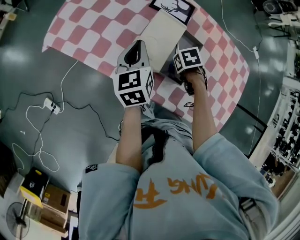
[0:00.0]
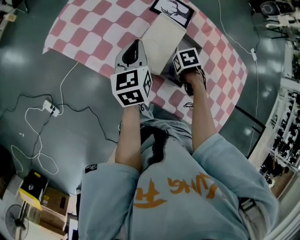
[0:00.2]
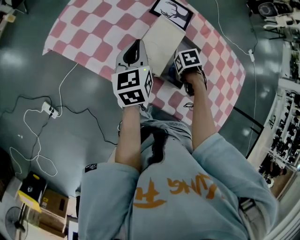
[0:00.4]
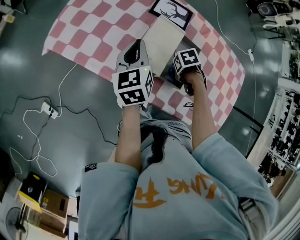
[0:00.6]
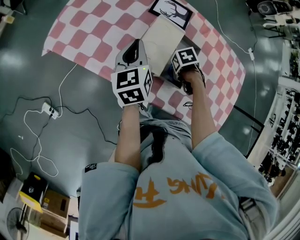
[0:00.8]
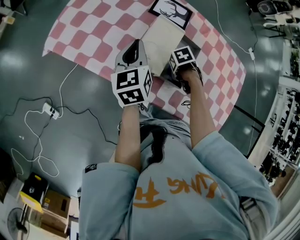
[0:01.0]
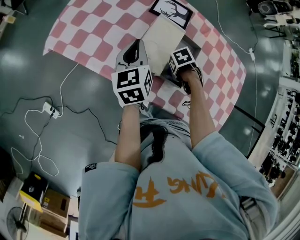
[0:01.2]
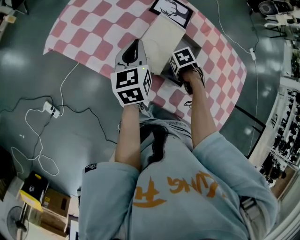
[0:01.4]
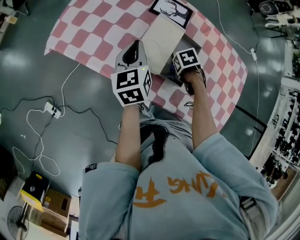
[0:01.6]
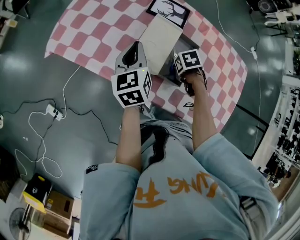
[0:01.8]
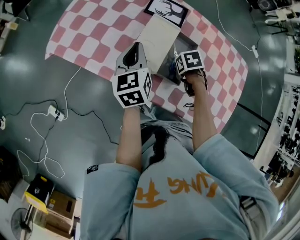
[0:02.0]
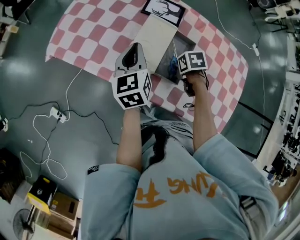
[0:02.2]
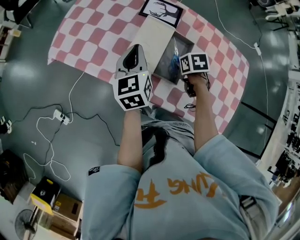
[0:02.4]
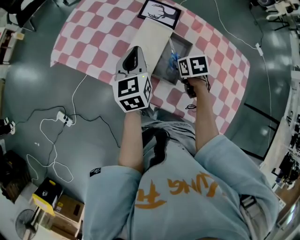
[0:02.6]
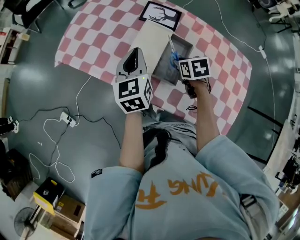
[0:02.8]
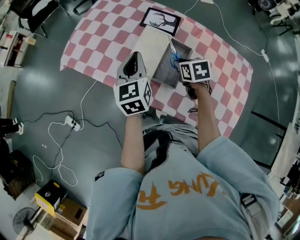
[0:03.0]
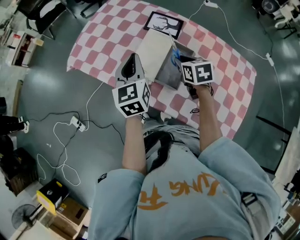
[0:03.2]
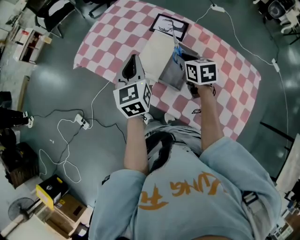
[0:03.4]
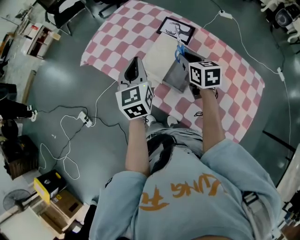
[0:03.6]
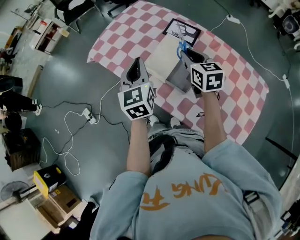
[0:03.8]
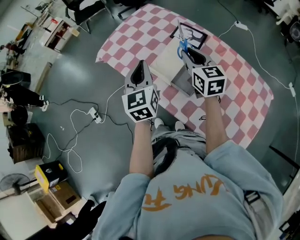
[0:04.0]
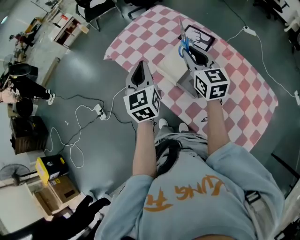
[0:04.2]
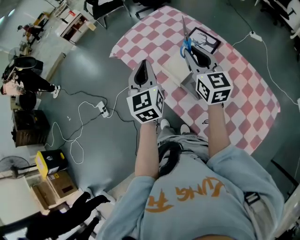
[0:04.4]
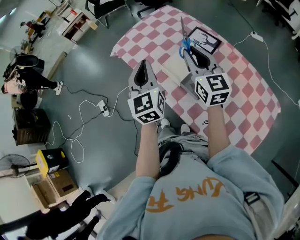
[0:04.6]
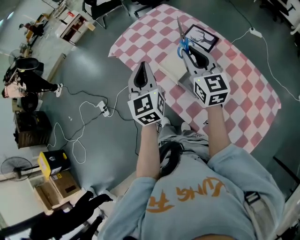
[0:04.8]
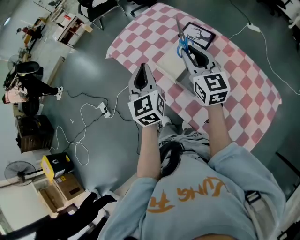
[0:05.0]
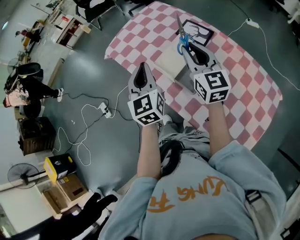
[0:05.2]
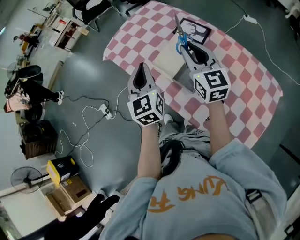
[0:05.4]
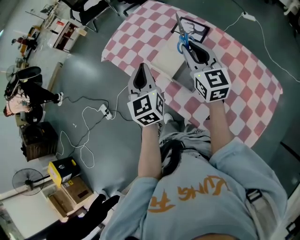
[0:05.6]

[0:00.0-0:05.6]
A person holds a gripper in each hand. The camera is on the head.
0:00.0 to 0:01.4: The grippers stay close to where they were, moving slightly.
0:01.4 to 0:02.8: The left gripper ends up about 10 cm from where it was. The right gripper is displaced upward by roughly 10 cm, and changes its angle by approximately 40 degrees.
0:02.8 to 0:04.2: The right gripper shifts about 20 cm upward, and angles its fingers upward, by about 50 degrees; the left gripper shifts approximately 15 cm upward, backward and to the left, and changes its angle by some 30 degrees.
0:04.2 to 0:05.6: The grippers move only a little.

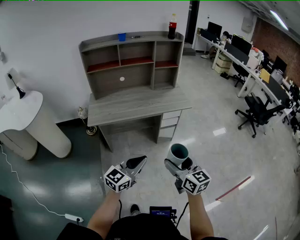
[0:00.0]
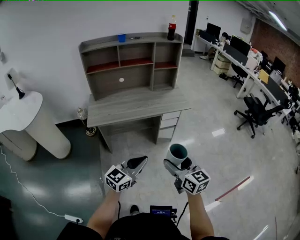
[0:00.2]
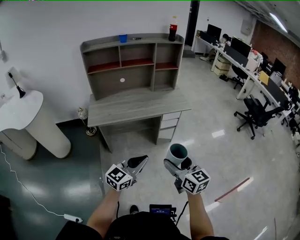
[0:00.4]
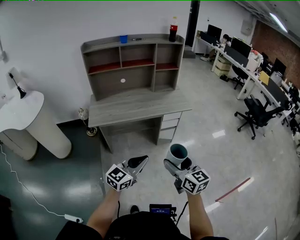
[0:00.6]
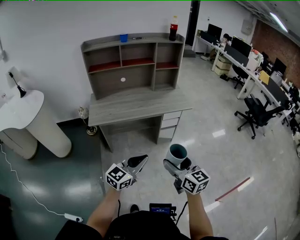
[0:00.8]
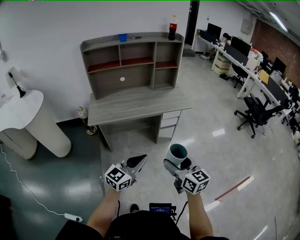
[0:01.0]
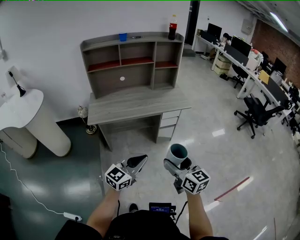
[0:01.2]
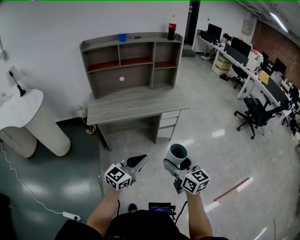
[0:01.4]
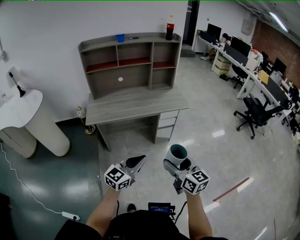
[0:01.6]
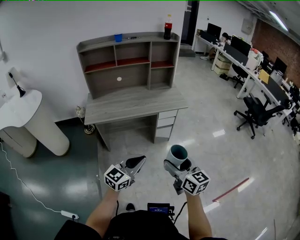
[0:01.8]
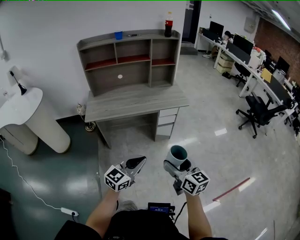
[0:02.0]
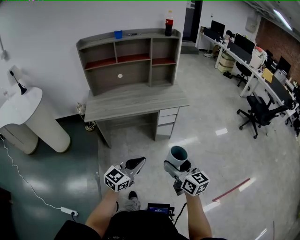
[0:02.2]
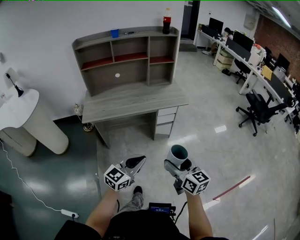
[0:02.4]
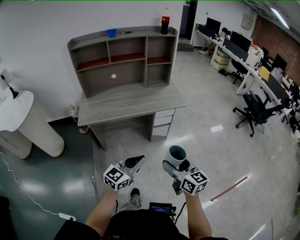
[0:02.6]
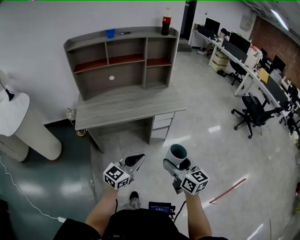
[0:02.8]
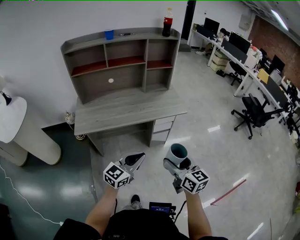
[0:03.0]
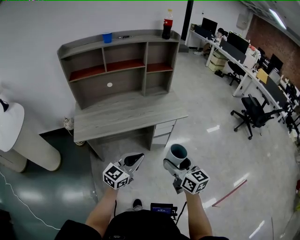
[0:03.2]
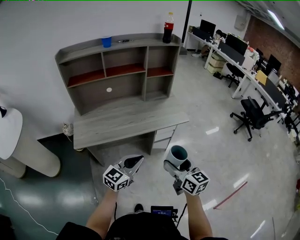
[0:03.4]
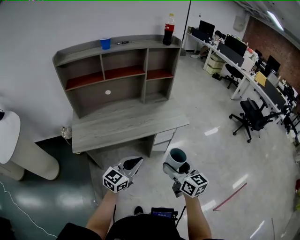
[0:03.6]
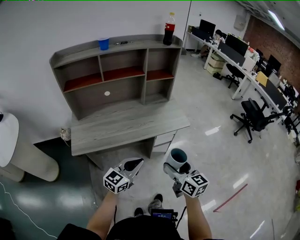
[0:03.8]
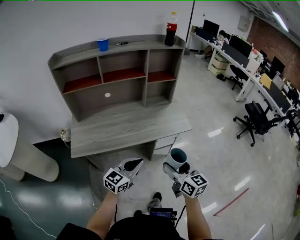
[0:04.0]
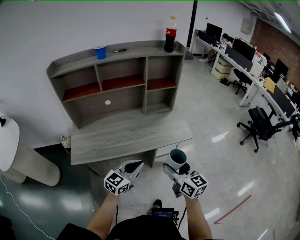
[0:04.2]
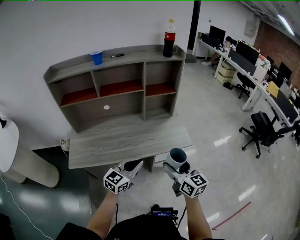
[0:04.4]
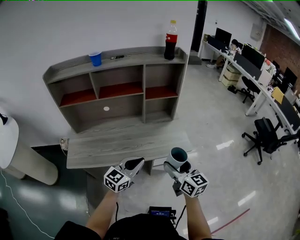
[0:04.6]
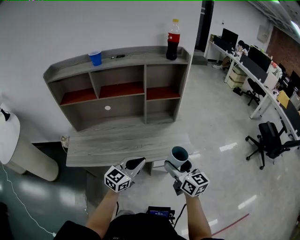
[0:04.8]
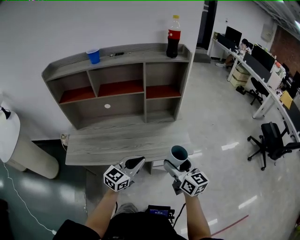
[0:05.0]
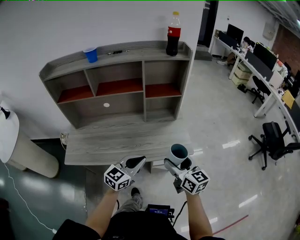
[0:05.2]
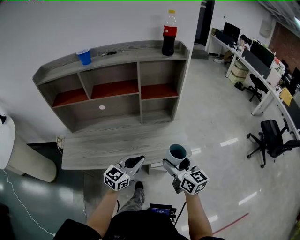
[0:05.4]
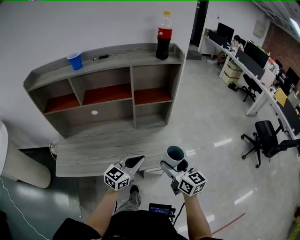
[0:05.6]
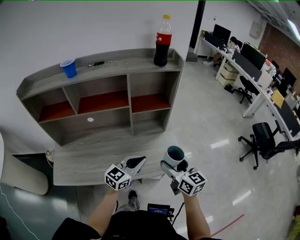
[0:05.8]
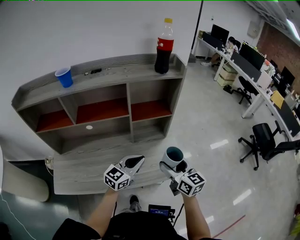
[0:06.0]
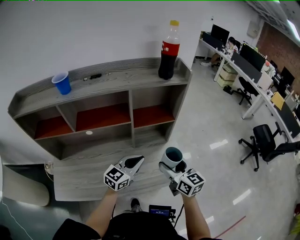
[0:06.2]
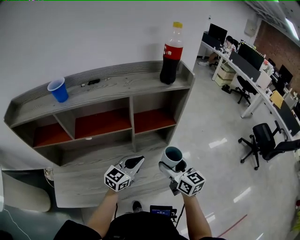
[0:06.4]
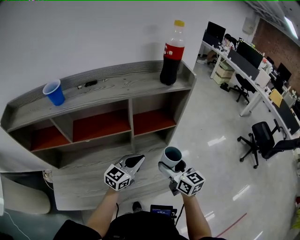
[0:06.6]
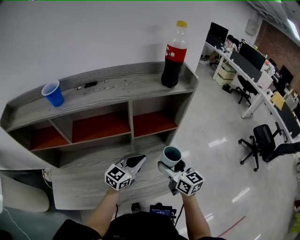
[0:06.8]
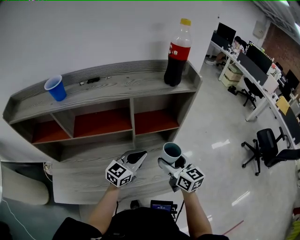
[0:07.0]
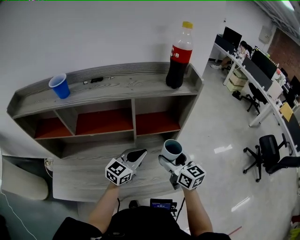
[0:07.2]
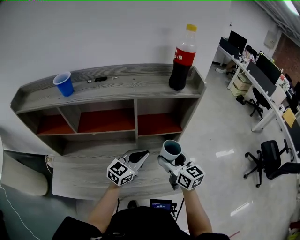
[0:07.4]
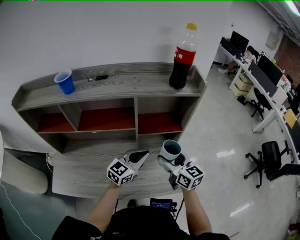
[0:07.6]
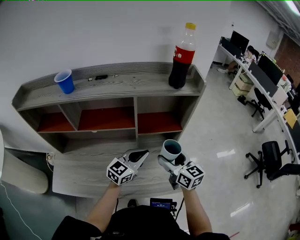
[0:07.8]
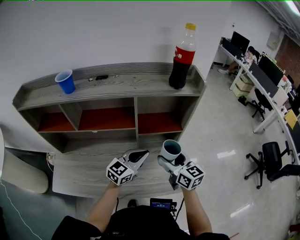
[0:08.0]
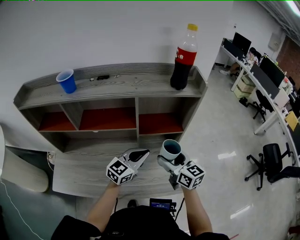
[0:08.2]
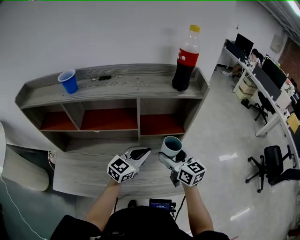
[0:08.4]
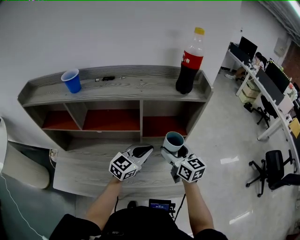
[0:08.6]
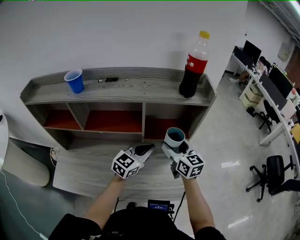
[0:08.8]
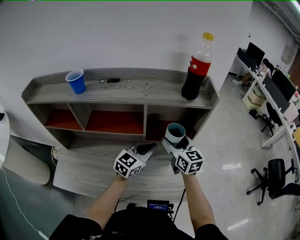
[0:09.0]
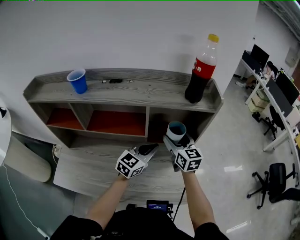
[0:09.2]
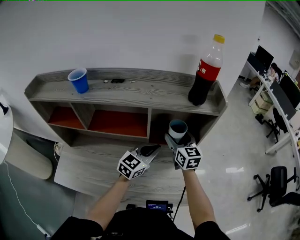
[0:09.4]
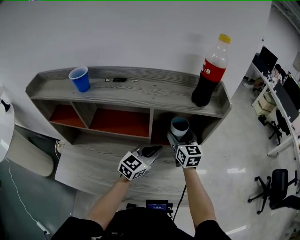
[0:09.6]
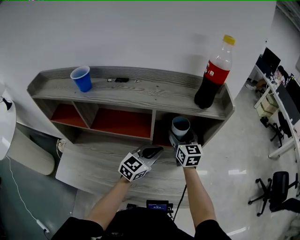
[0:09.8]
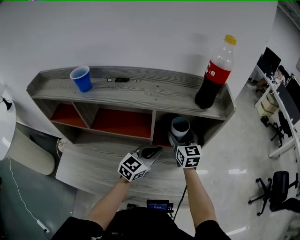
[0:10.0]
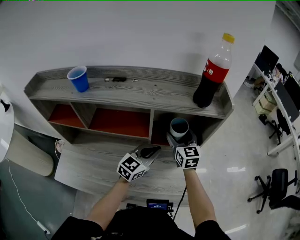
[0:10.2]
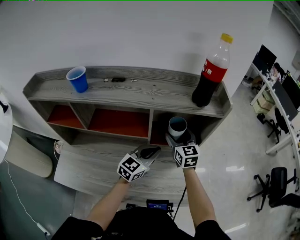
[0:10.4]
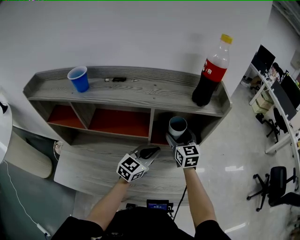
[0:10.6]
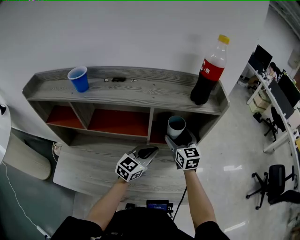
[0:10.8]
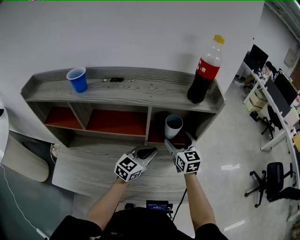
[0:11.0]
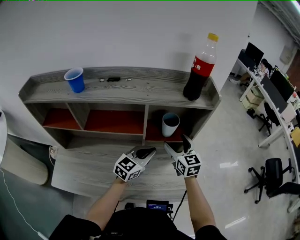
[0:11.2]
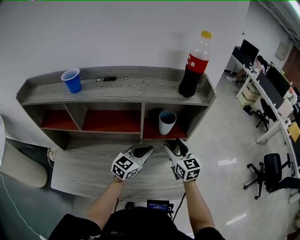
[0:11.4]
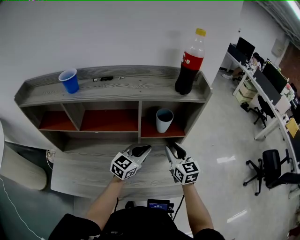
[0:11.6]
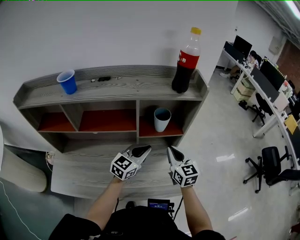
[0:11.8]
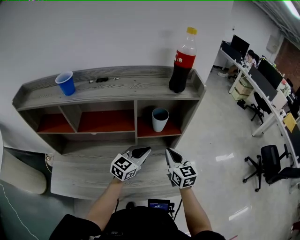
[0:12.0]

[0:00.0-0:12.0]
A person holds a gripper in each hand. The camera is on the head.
0:00.0 to 0:01.6: The grippers stay close to where they were, moving slightly.
0:01.6 to 0:03.0: The two grippers go roughly 15 cm forward.
0:03.0 to 0:04.4: Both grippers travel together forward, approximately 25 cm.
0:04.4 to 0:06.0: The grippers both shift forward by about 25 cm.
0:06.0 to 0:07.6: Both grippers travel together forward, roughly 10 cm.
0:07.6 to 0:09.0: The right gripper goes about 10 cm forward. Meanwhile the left gripper goes approximately 5 cm forward.
0:09.0 to 0:10.4: The right gripper is displaced forward by some 5 cm.
0:10.4 to 0:12.0: The right gripper moves backward and to the right, approximately 15 cm, and closes up.

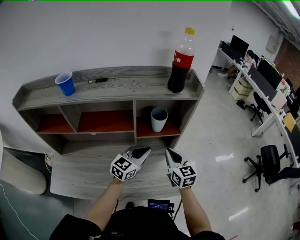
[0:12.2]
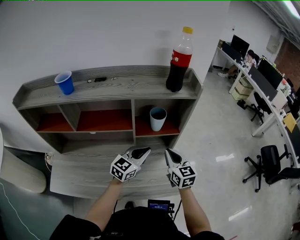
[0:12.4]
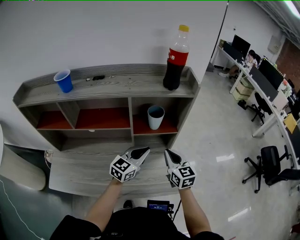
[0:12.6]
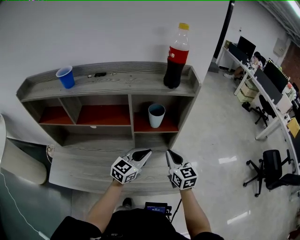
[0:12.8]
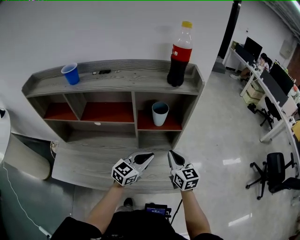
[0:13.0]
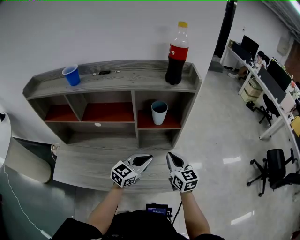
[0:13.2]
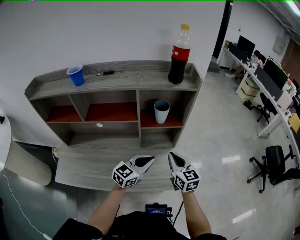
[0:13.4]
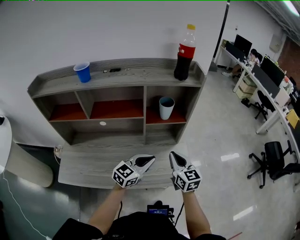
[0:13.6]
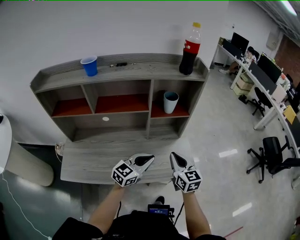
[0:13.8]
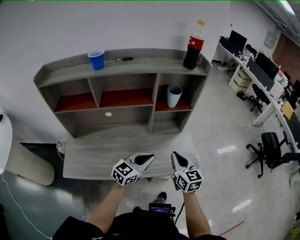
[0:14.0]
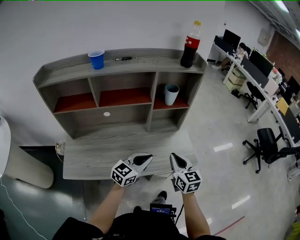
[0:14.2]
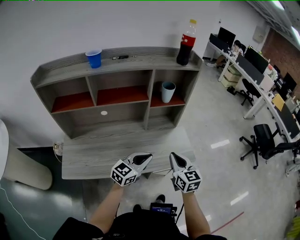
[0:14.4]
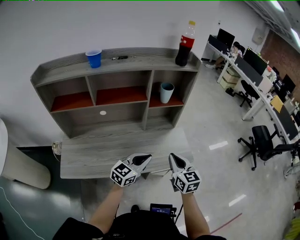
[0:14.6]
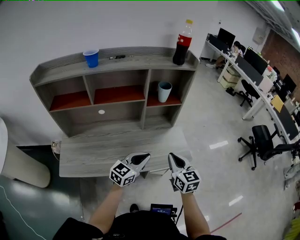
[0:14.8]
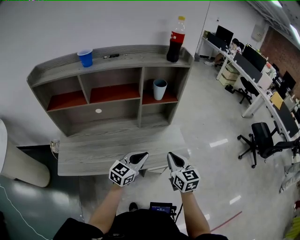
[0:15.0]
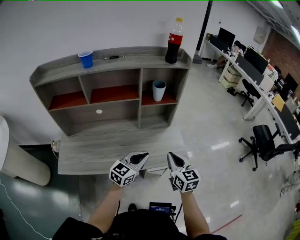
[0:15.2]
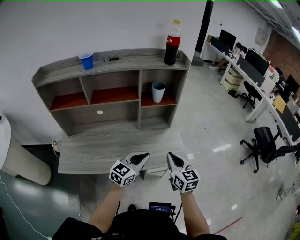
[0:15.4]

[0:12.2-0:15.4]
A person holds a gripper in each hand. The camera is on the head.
0:12.2 to 0:13.8: The two grippers go some 15 cm backward.
0:13.8 to 0:15.4: The right gripper moves backward and to the right, about 10 cm; the left gripper goes about 10 cm backward.

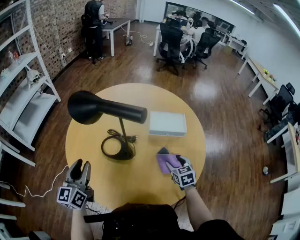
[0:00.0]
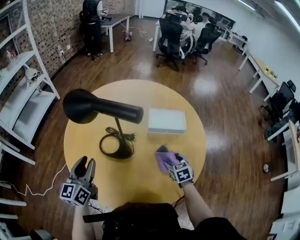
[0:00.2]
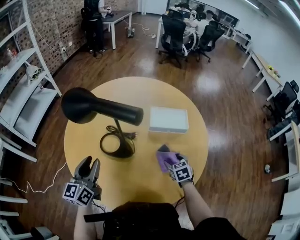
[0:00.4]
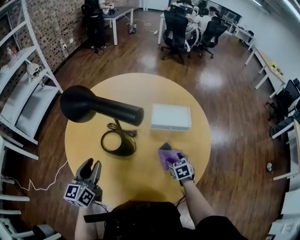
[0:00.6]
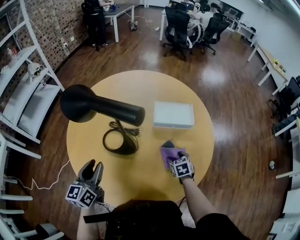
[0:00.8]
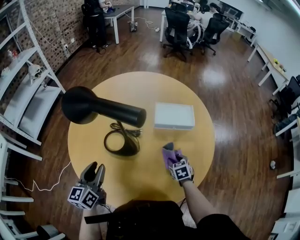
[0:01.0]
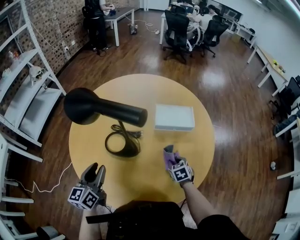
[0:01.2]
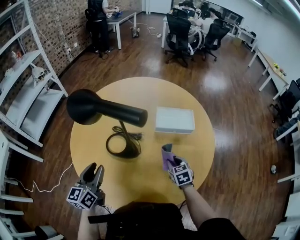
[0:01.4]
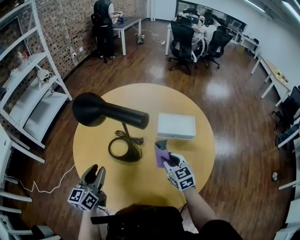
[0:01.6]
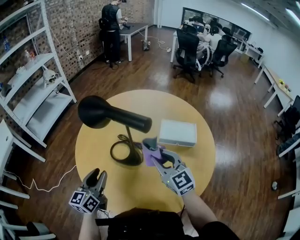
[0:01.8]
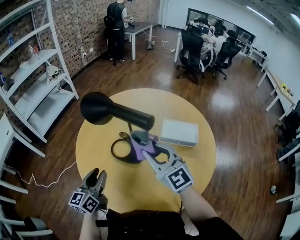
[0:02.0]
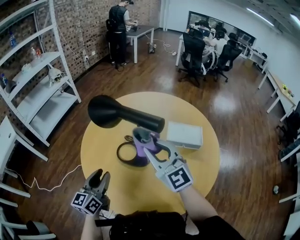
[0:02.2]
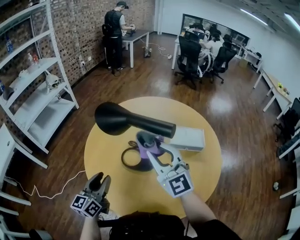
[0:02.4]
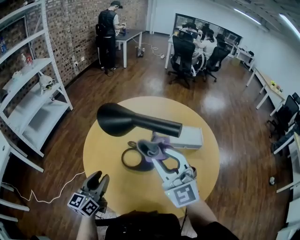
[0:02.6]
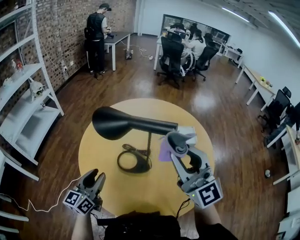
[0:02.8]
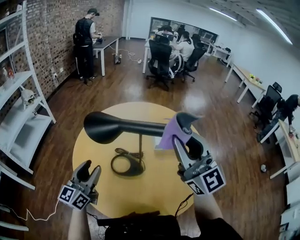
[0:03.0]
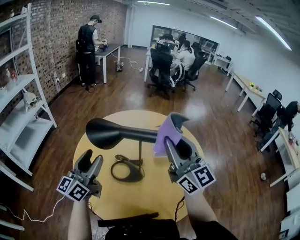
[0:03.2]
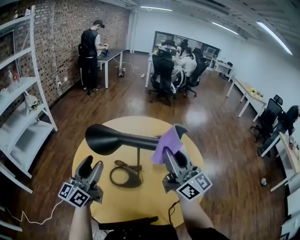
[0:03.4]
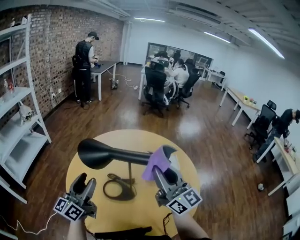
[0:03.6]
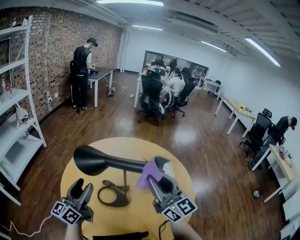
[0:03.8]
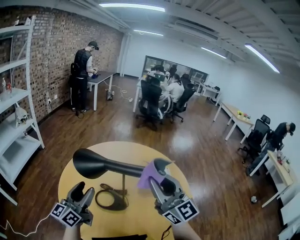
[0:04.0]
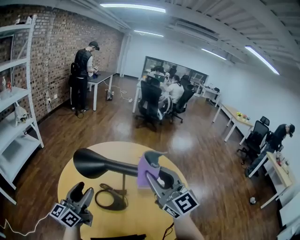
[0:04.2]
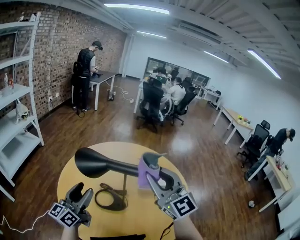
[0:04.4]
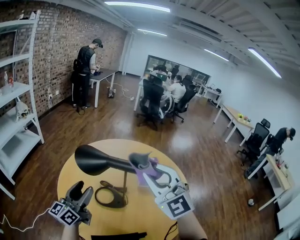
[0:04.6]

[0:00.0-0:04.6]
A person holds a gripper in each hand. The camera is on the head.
0:00.0 to 0:01.6: The right gripper heads to the left and upward, covering some 10 cm, turns by approximately 20 degrees, and closes its fingers.
0:01.6 to 0:03.0: The right gripper travels upward by about 35 cm, and points its fingers roughly 50 degrees further upward. Meanwhile the left gripper heads forward and upward, covering some 10 cm, and rotates some 20 degrees.
0:03.0 to 0:04.6: The right gripper changes place by some 5 cm, and rotates about 30 degrees.
